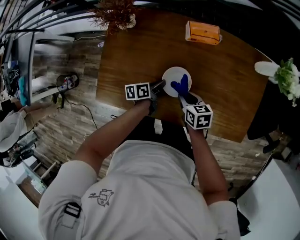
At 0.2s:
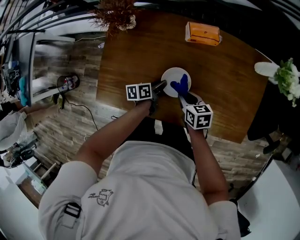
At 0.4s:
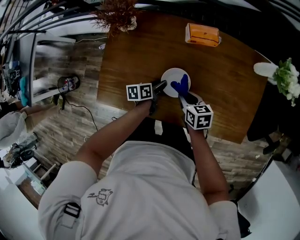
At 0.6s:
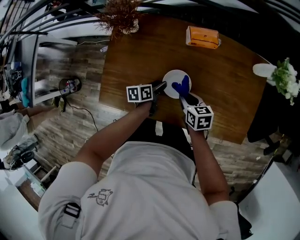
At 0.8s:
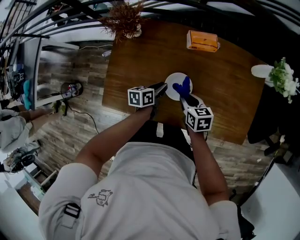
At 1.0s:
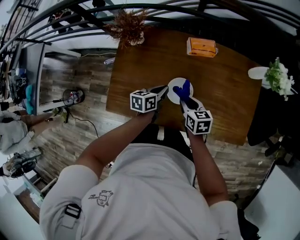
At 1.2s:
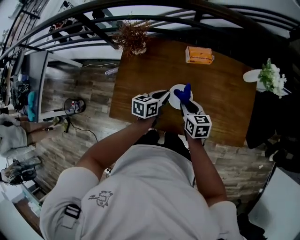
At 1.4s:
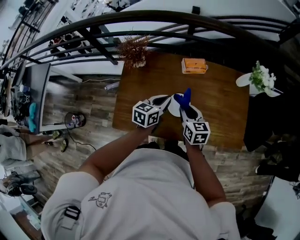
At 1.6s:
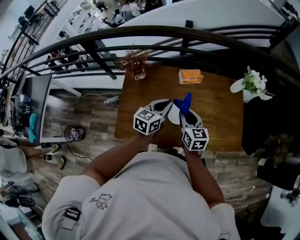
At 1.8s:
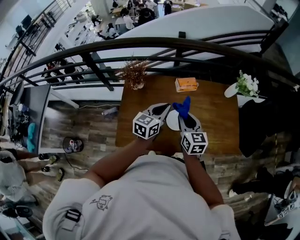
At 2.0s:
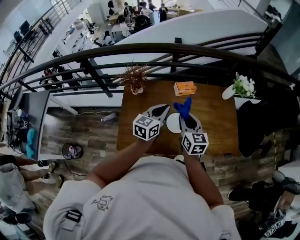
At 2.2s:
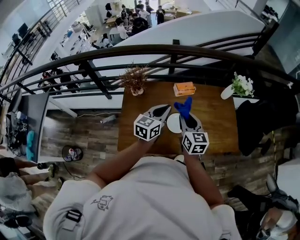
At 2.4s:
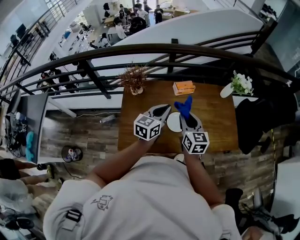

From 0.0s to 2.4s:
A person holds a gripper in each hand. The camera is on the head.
From 0.0s to 1.2s: Both grippers move upward, some 15 cm. The left gripper rotates approximately 30 degrees, and opens, then closes once more.
From 1.2s to 2.4s: Both grippers travel together upward, approximately 20 cm. The left gripper swivels roughly 30 degrees. The right gripper changes its angle by some 30 degrees.

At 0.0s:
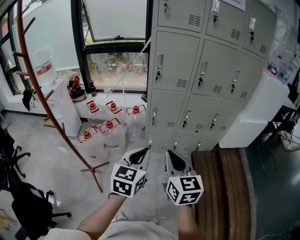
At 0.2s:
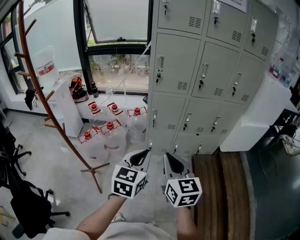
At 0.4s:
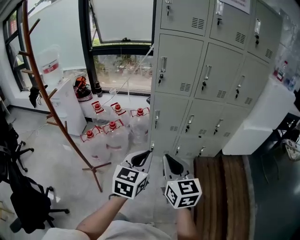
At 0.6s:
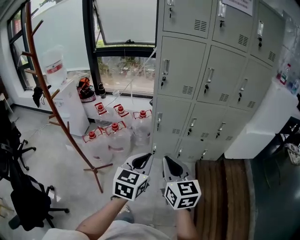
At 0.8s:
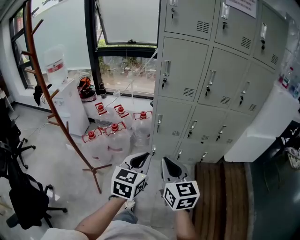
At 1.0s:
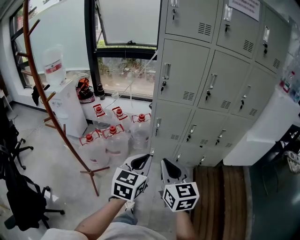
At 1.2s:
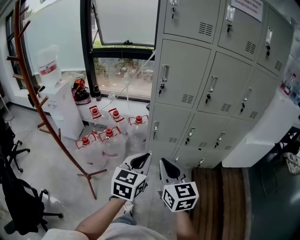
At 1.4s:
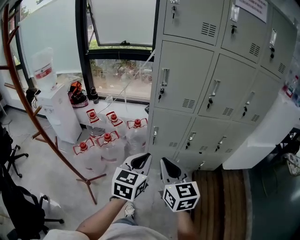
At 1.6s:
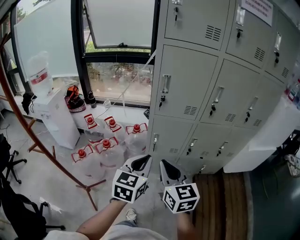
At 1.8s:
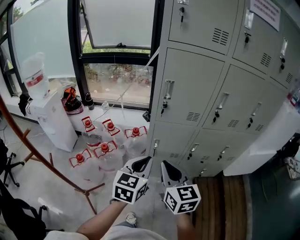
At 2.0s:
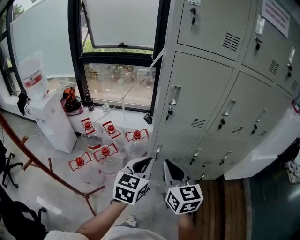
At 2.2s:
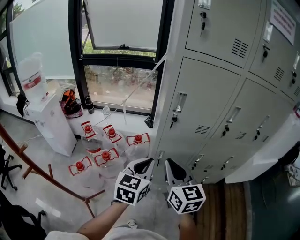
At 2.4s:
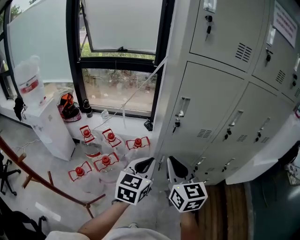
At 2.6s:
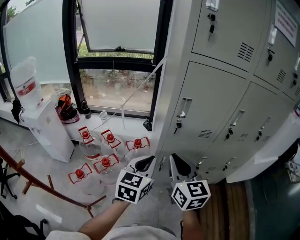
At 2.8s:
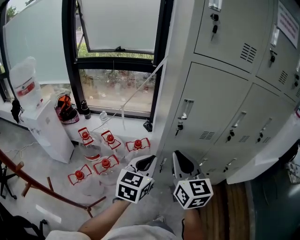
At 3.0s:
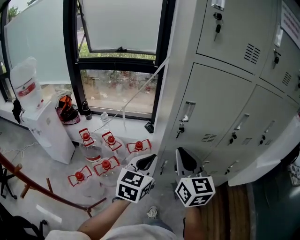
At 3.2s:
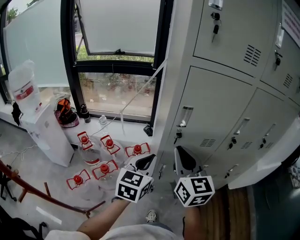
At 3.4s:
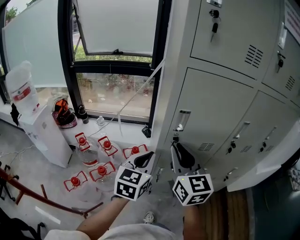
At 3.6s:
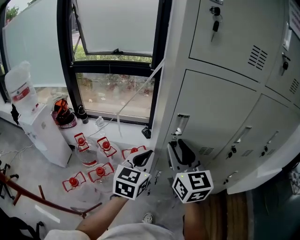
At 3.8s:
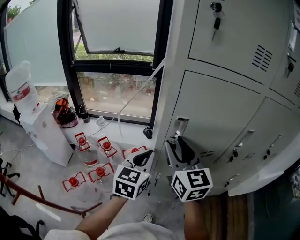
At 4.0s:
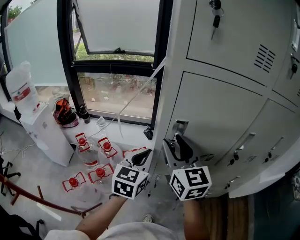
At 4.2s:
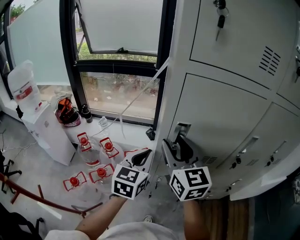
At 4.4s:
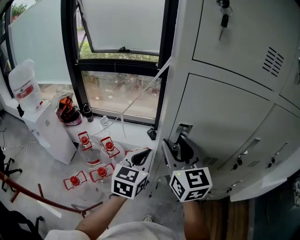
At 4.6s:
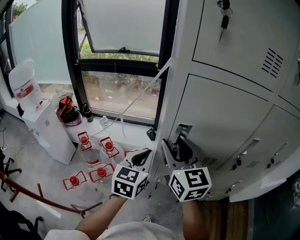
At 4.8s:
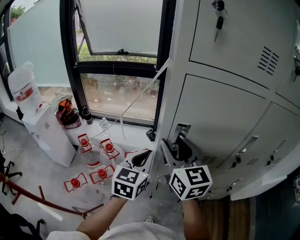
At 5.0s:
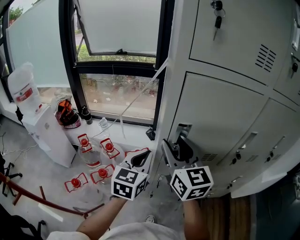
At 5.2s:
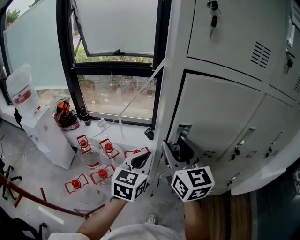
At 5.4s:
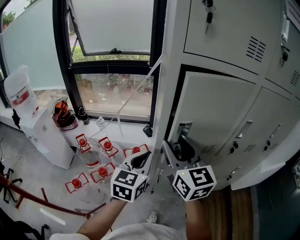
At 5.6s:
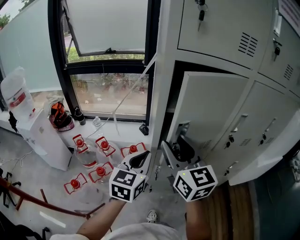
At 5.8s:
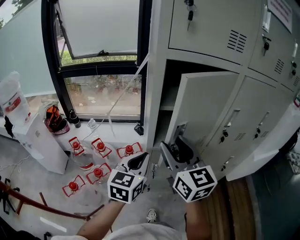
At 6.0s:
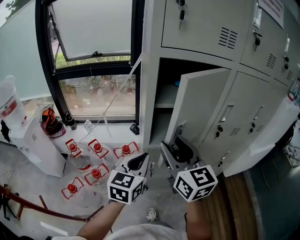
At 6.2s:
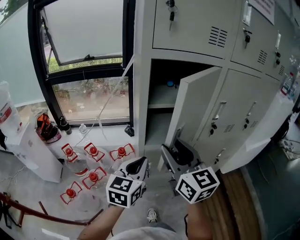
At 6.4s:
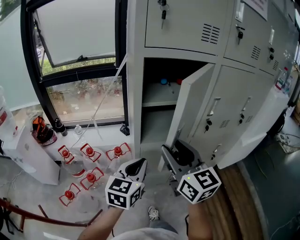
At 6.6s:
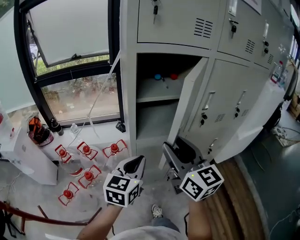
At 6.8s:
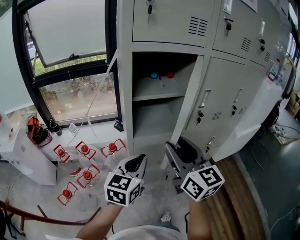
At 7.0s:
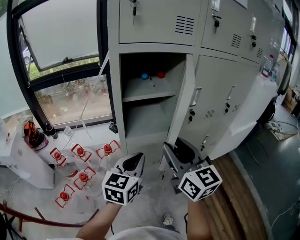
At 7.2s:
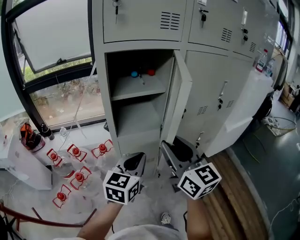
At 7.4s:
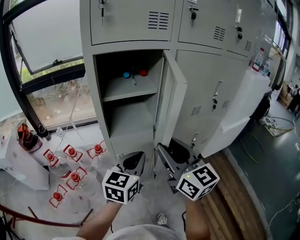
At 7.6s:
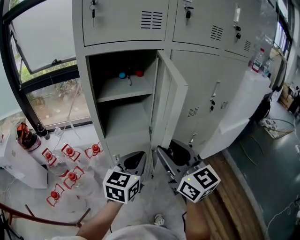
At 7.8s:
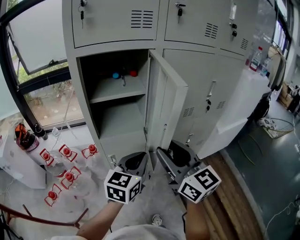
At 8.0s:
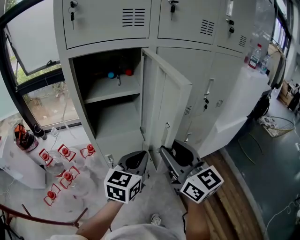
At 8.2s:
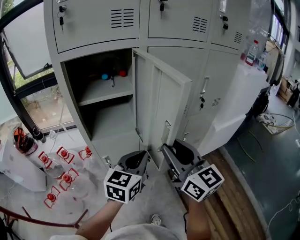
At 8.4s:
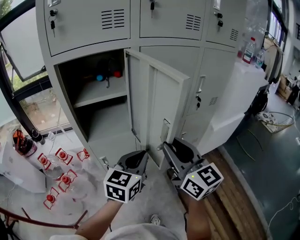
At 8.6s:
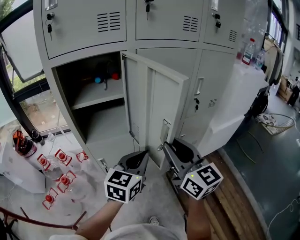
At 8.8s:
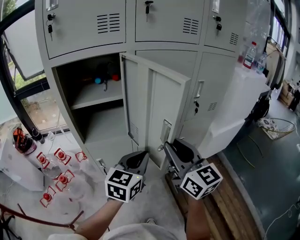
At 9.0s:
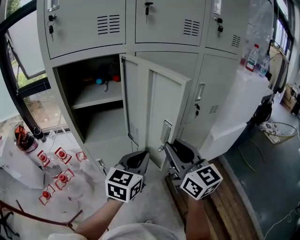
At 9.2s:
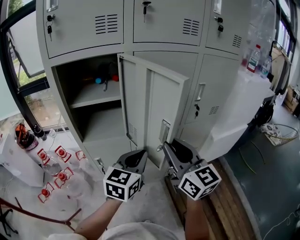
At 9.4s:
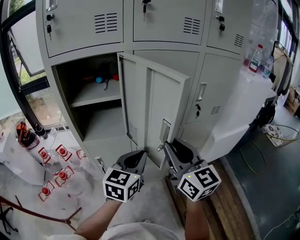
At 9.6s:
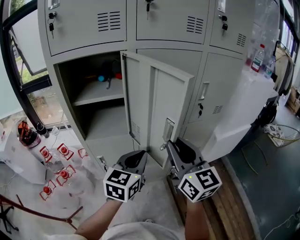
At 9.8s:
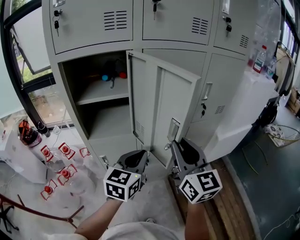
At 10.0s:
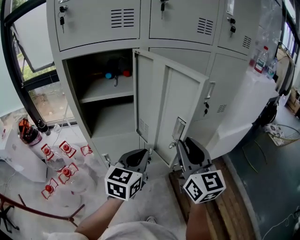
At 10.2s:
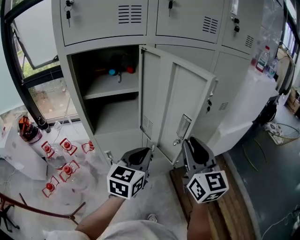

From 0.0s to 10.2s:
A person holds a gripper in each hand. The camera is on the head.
From 0.0s to 1.4s: The two grippers go roughly 15 cm forward.
From 1.4s to 3.0s: The two grippers go approximately 25 cm forward.
From 3.0s to 4.4s: Both grippers travel together forward, roughly 15 cm. The right gripper opens its fingers.
From 4.4s to 5.8s: Both grippers travel together backward, roughly 10 cm.
From 5.8s to 7.2s: Both grippers move to the right and backward, roughly 15 cm.
From 7.2s to 8.8s: The grippers both shift to the right by approximately 20 cm.
From 8.8s to 10.2s: There are only small adjustments of the grippers.

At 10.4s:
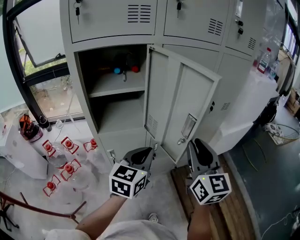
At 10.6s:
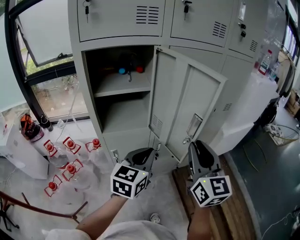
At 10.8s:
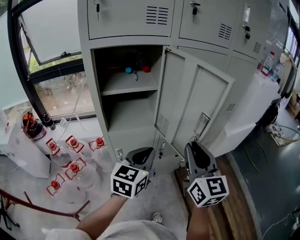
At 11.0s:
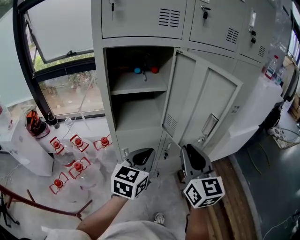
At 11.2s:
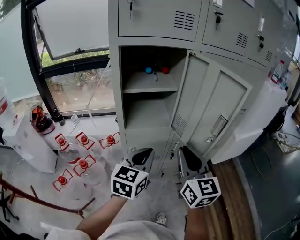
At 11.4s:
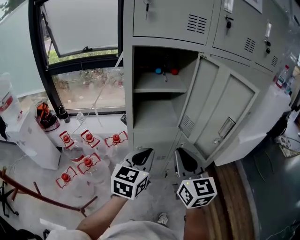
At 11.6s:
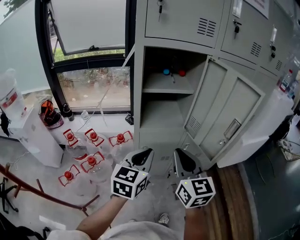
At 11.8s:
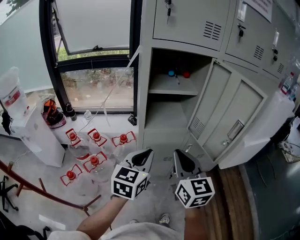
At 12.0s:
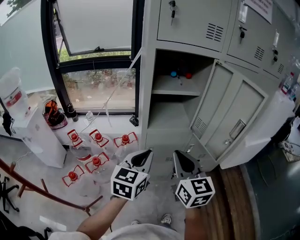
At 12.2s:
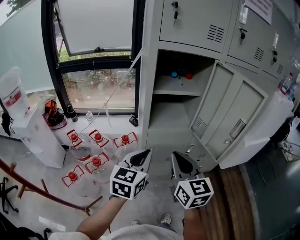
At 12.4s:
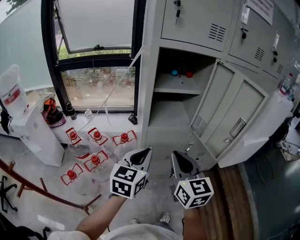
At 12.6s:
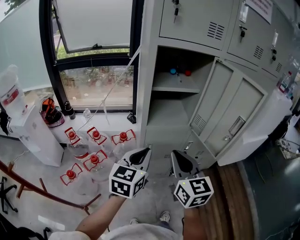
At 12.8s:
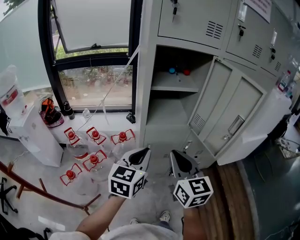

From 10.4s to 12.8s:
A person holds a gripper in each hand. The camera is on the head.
From 10.4s to 11.6s: Both grippers move to the left, about 20 cm.
From 11.6s to 12.8s: The right gripper goes roughly 5 cm to the left; the left gripper changes place by some 5 cm.

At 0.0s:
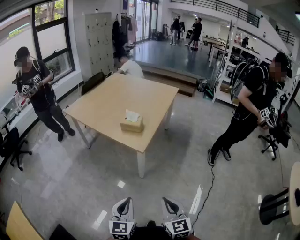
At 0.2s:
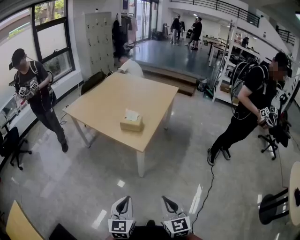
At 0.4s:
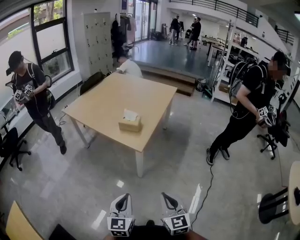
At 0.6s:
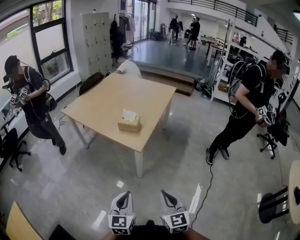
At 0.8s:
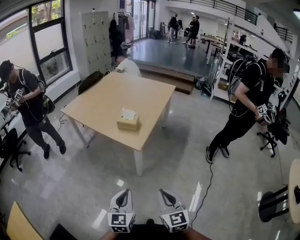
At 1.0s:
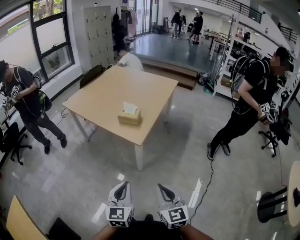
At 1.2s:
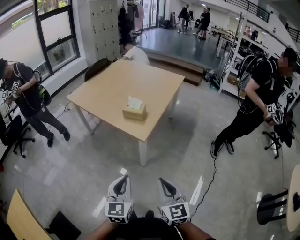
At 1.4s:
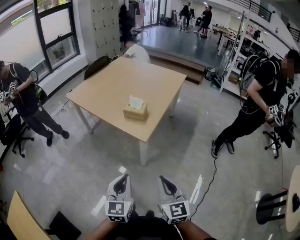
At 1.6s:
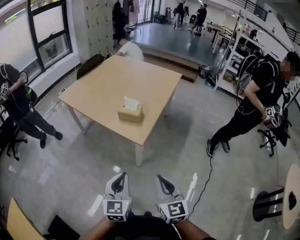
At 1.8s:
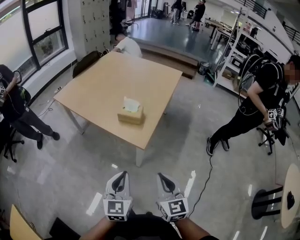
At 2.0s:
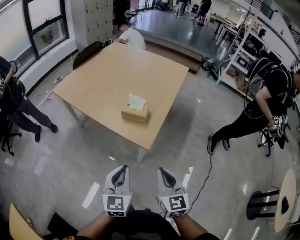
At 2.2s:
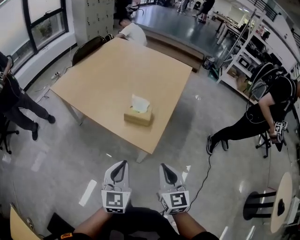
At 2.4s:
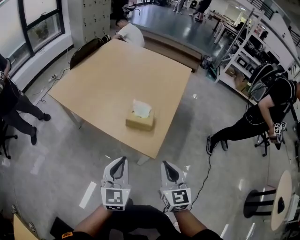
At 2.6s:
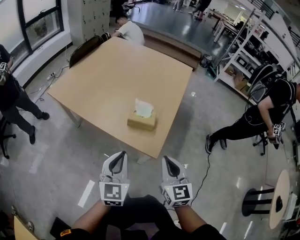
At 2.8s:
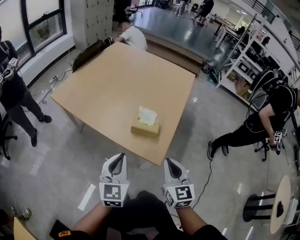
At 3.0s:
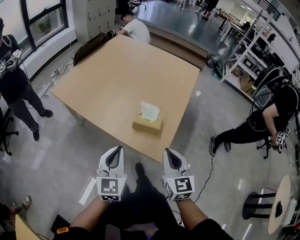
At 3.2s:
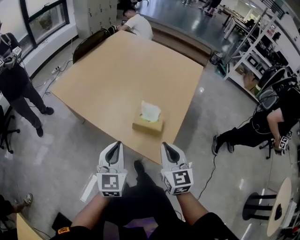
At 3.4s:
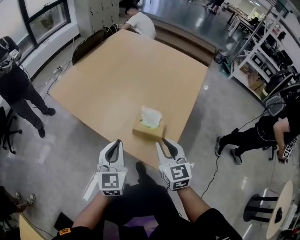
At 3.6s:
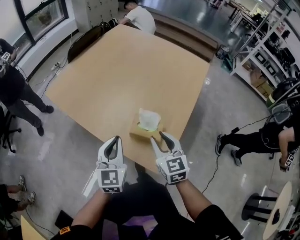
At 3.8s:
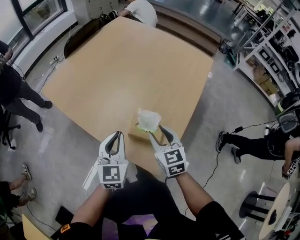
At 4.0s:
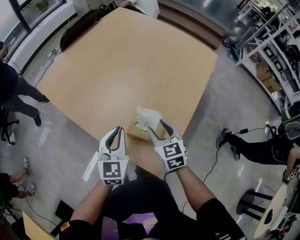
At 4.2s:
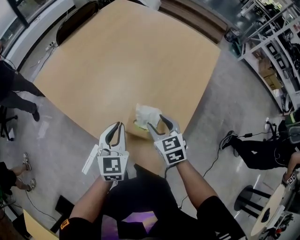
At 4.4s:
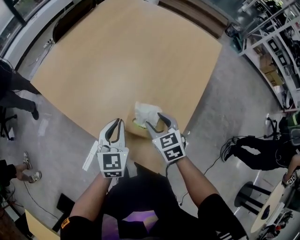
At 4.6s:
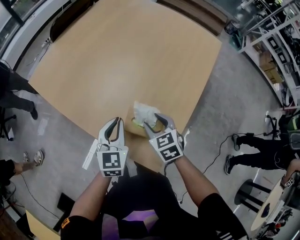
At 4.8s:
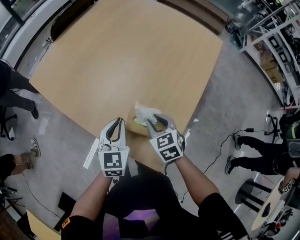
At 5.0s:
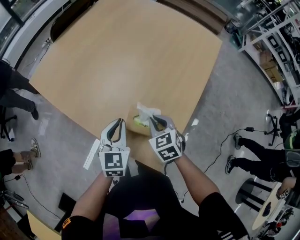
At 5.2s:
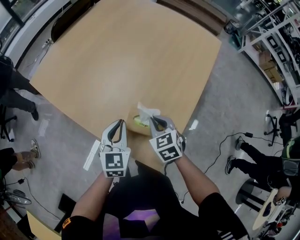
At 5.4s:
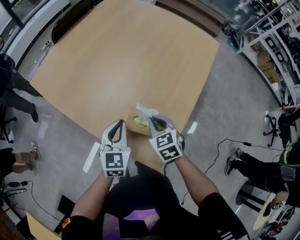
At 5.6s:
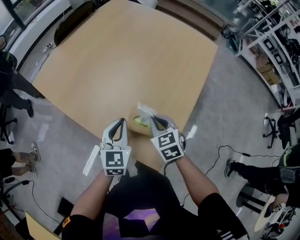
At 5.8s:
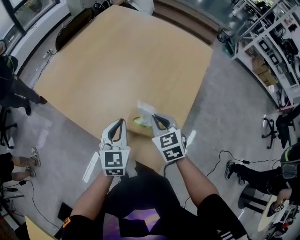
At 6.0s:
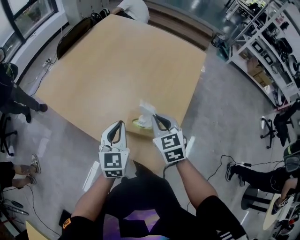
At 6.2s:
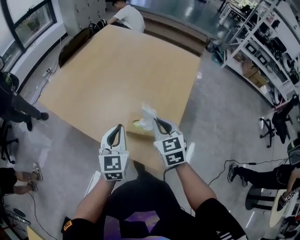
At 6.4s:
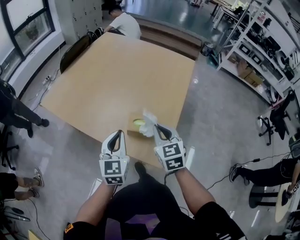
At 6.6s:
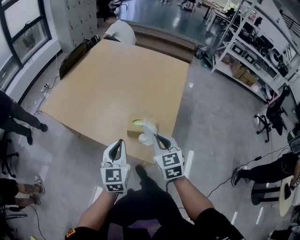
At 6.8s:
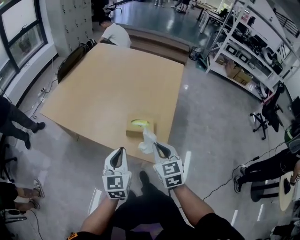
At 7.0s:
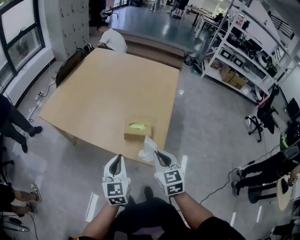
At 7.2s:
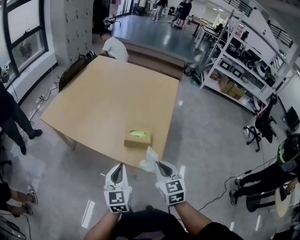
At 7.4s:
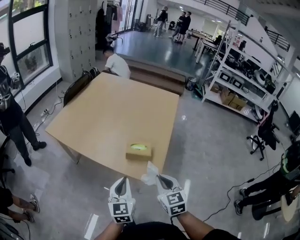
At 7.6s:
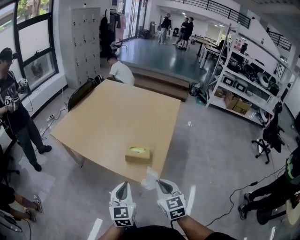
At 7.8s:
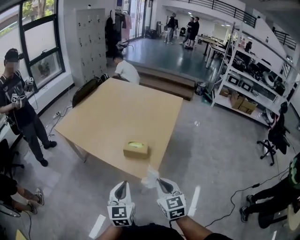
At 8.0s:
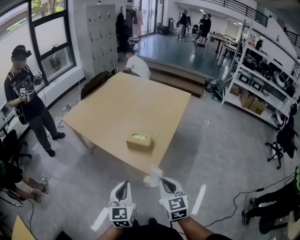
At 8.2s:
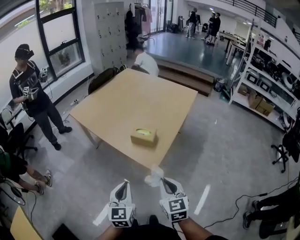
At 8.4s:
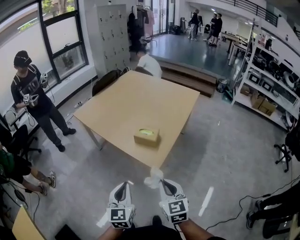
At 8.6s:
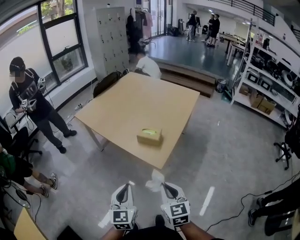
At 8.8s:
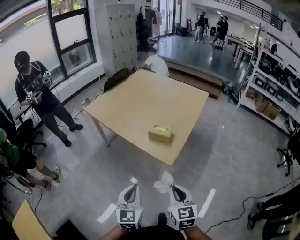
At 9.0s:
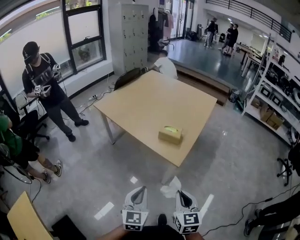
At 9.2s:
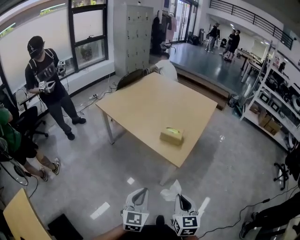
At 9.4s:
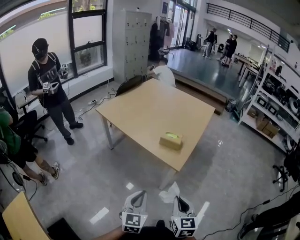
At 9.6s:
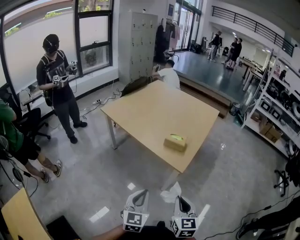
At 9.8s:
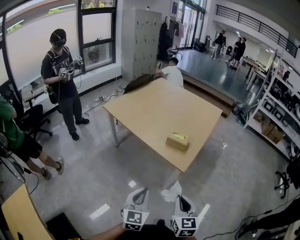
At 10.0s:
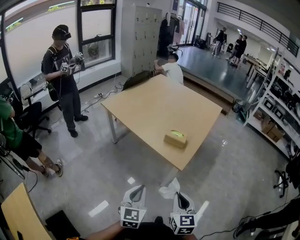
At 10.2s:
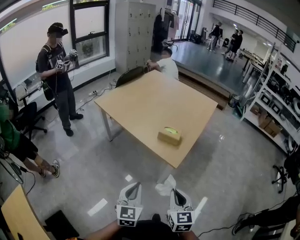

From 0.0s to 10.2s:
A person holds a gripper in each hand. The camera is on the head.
From 0.0s to 1.4s: Both grippers move forward, approximately 5 cm.
From 1.4s to 3.0s: The left gripper goes approximately 30 cm forward and to the left, while the right gripper goes about 30 cm forward.
From 3.0s to 4.4s: Both grippers travel together forward and downward, roughly 25 cm. The right gripper points its fingers approximately 30 degrees further downward, and opens up.
From 4.4s to 5.8s: The right gripper travels upward by approximately 5 cm, and closes up.
From 5.8s to 7.2s: The grippers both shift backward by approximately 20 cm. The right gripper swivels approximately 20 degrees.
From 7.2s to 8.8s: The two grippers go approximately 20 cm backward.
